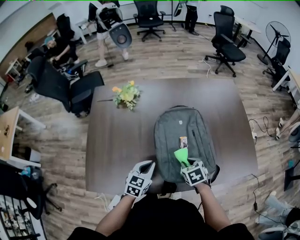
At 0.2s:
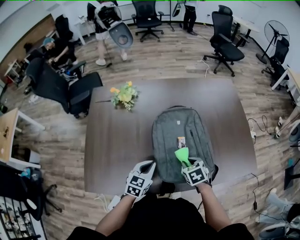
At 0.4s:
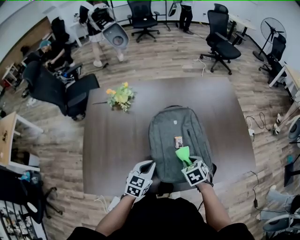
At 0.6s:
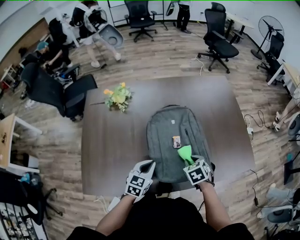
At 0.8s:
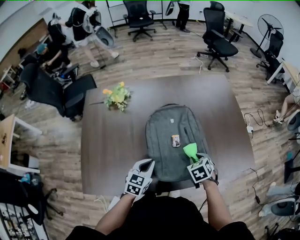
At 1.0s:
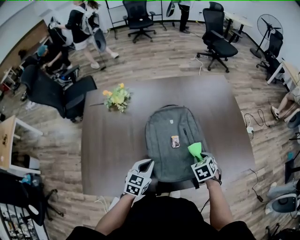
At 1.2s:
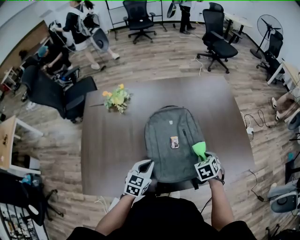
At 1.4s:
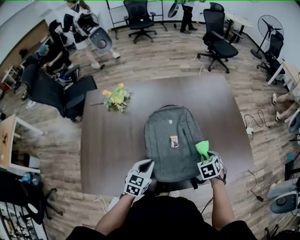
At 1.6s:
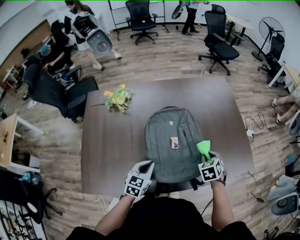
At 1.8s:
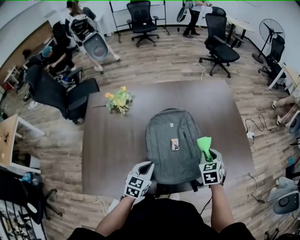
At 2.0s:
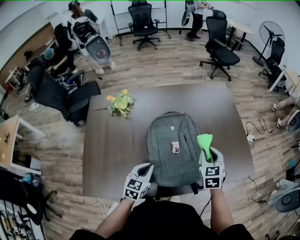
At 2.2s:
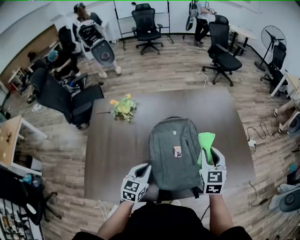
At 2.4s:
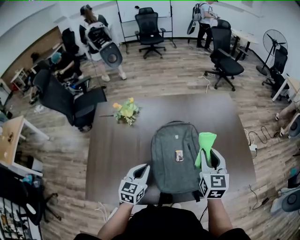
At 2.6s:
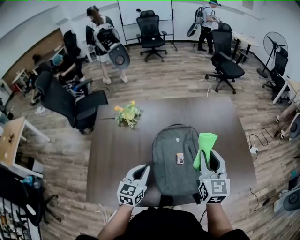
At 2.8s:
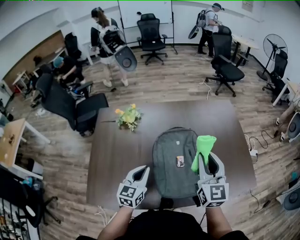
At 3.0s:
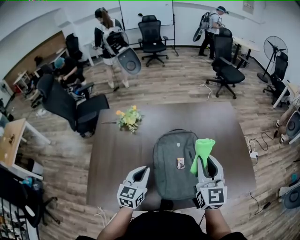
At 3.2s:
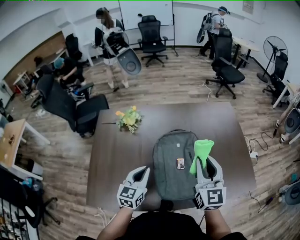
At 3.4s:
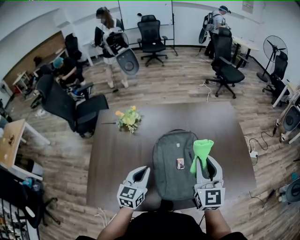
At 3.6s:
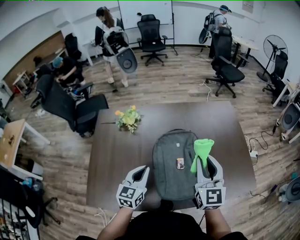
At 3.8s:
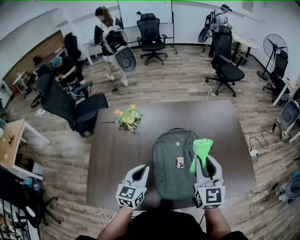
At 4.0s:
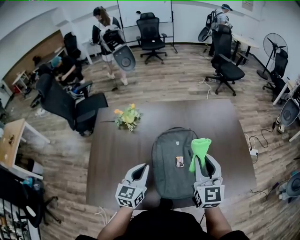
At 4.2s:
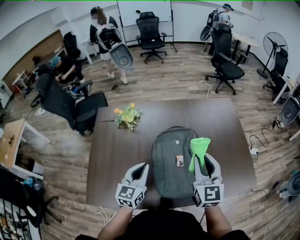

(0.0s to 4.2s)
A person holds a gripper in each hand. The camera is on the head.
0.0s - 1.4s: The right gripper is displaced to the right by about 15 cm.
1.4s - 2.8s: The left gripper heads upward and to the left, covering about 10 cm, while the right gripper travels upward and to the left by about 30 cm, and points its fingers about 60 degrees further upward.
2.8s - 4.2s: The grippers make only small movements.

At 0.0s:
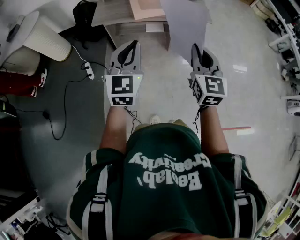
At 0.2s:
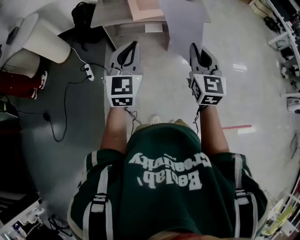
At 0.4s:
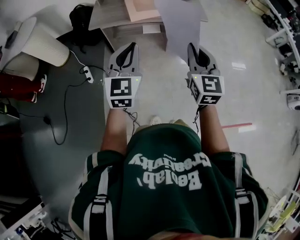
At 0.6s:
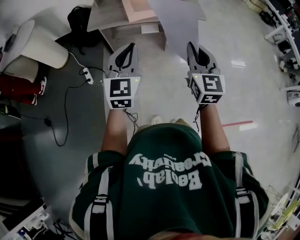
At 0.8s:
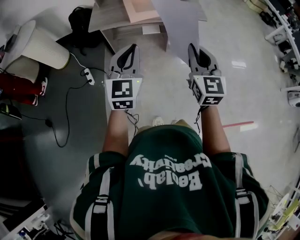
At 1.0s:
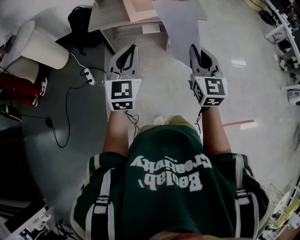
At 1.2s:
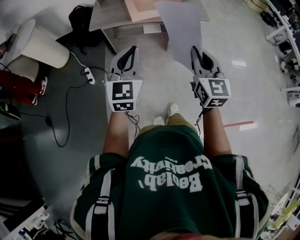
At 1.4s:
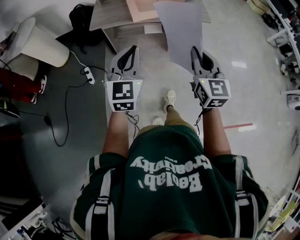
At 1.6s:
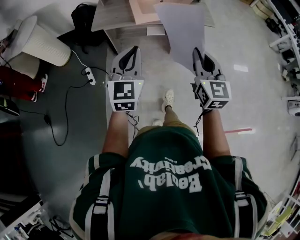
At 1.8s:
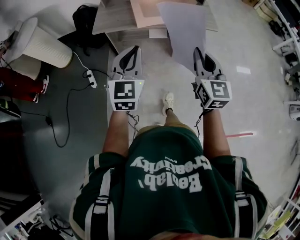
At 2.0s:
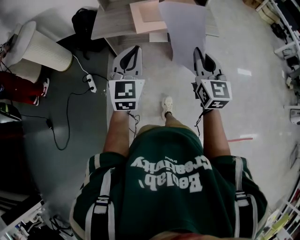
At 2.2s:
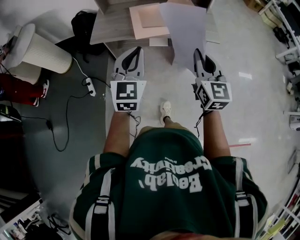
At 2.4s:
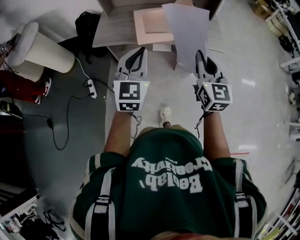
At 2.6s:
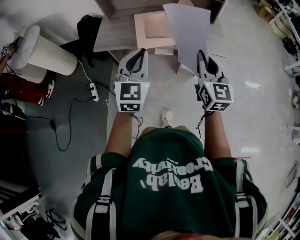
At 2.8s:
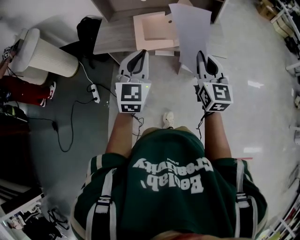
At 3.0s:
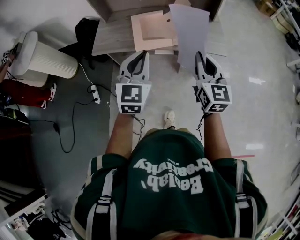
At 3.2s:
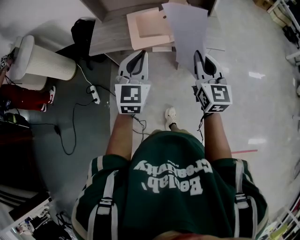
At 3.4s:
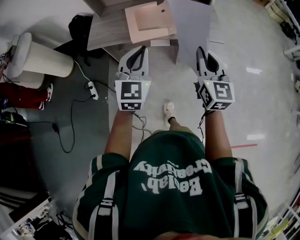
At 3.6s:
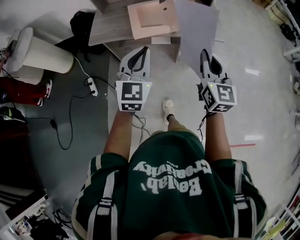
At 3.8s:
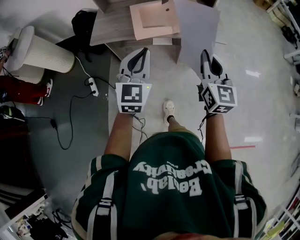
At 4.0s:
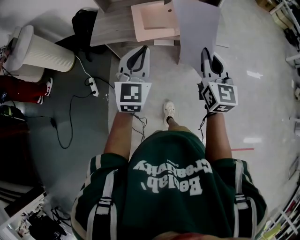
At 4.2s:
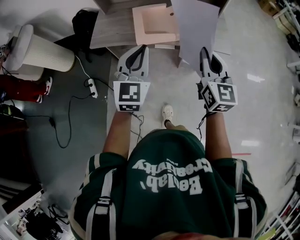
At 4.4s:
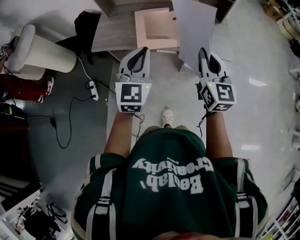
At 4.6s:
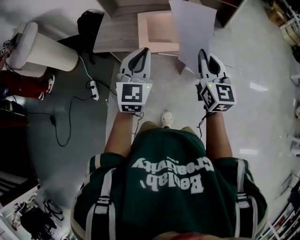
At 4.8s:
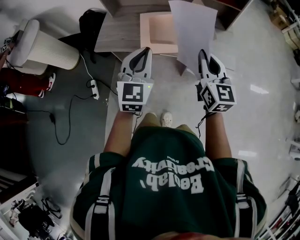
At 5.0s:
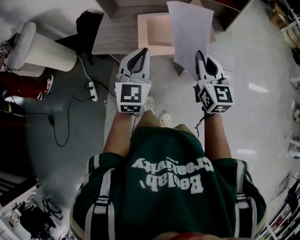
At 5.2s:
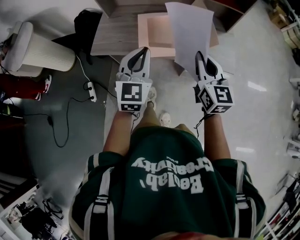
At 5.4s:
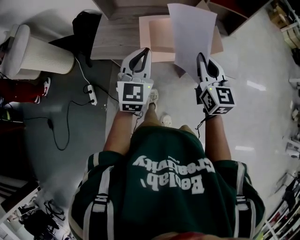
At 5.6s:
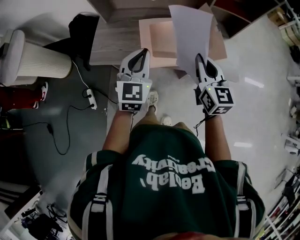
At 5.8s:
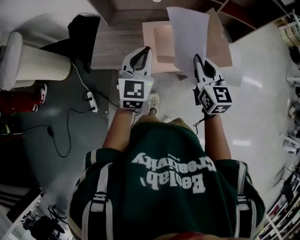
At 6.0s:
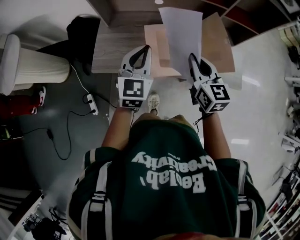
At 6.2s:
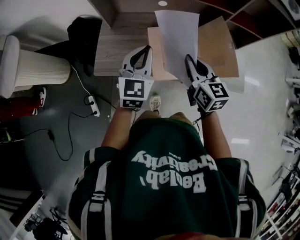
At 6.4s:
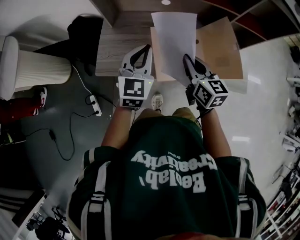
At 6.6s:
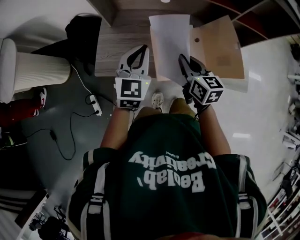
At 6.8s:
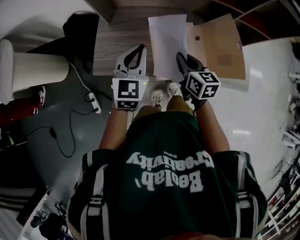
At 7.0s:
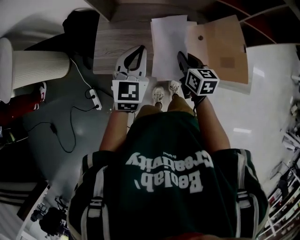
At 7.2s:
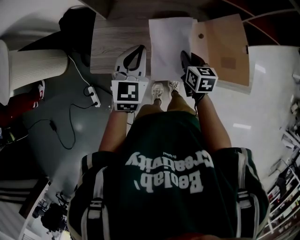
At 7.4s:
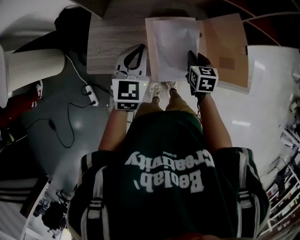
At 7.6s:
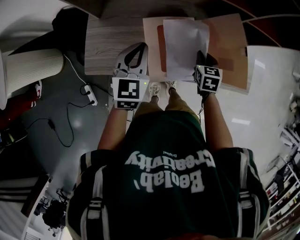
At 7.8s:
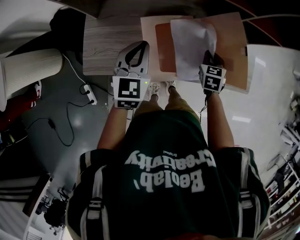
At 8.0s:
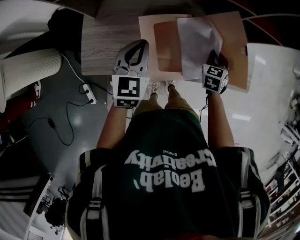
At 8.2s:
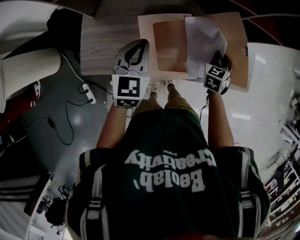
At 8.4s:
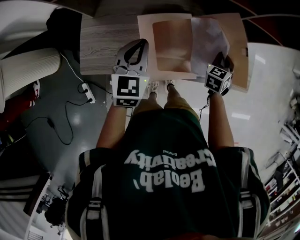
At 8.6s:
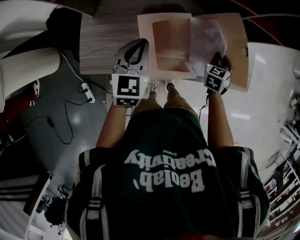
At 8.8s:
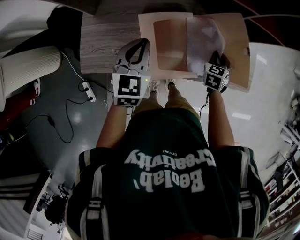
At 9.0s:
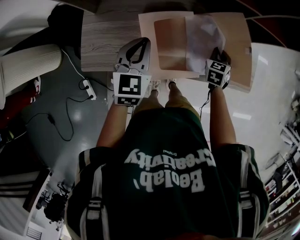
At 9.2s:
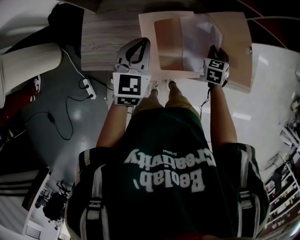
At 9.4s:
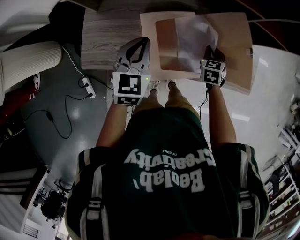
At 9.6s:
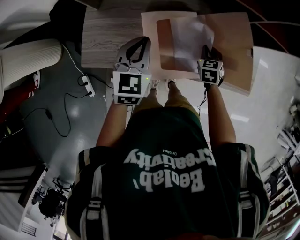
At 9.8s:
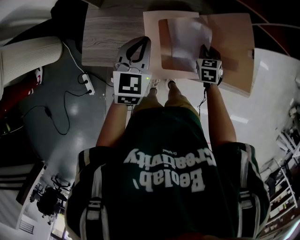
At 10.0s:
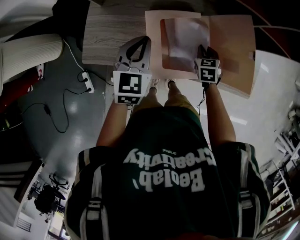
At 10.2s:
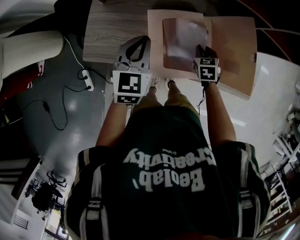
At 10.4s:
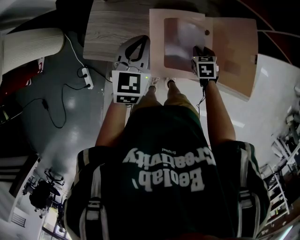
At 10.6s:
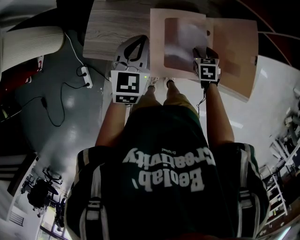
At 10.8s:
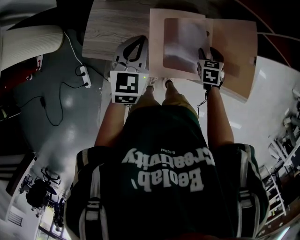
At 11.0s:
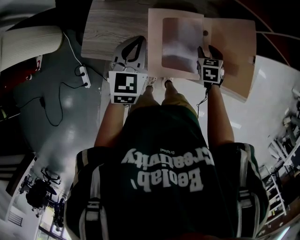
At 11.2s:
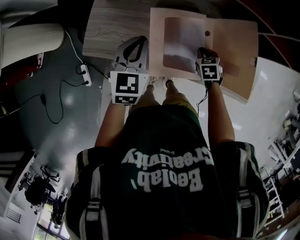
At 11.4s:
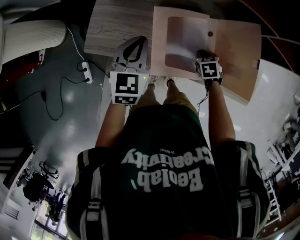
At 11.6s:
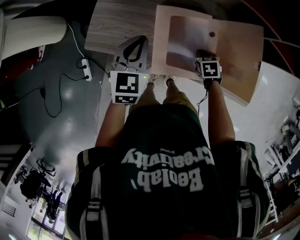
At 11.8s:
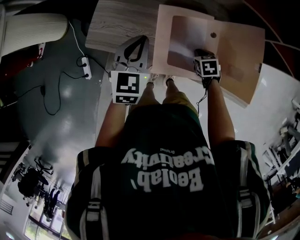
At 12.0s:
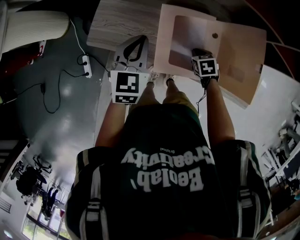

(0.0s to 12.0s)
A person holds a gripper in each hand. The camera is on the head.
0.0s - 1.6s: The left gripper changes place by approximately 5 cm.
1.6s - 3.0s: Both grippers travel together forward, roughly 30 cm.
3.0s - 4.4s: The right gripper is displaced forward by approximately 5 cm; the left gripper shifts by about 5 cm.
4.4s - 6.0s: The left gripper is displaced forward by about 25 cm; the right gripper shifts about 30 cm forward and to the left.
6.0s - 7.6s: The right gripper shifts roughly 25 cm downward and forward, and tips its fingers downward by approximately 30 degrees, while the left gripper heads forward and downward, covering some 15 cm.
7.6s - 9.0s: The right gripper goes some 10 cm to the right.
9.0s - 10.4s: The right gripper moves to the left, approximately 10 cm, and changes its angle by about 30 degrees.
10.4s - 12.0s: The right gripper opens, then closes once more.

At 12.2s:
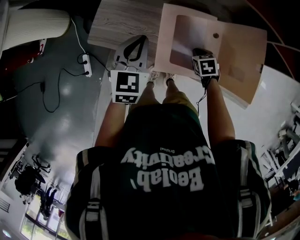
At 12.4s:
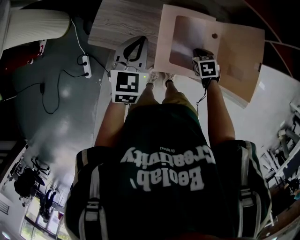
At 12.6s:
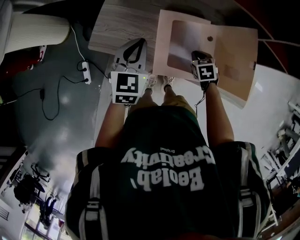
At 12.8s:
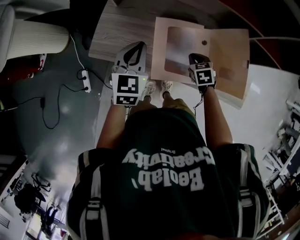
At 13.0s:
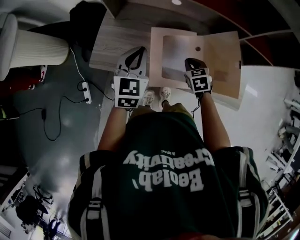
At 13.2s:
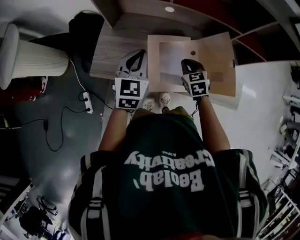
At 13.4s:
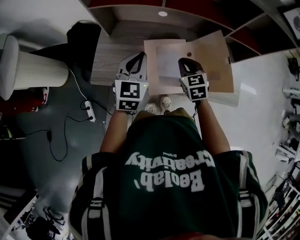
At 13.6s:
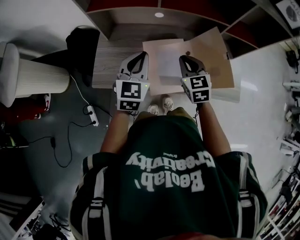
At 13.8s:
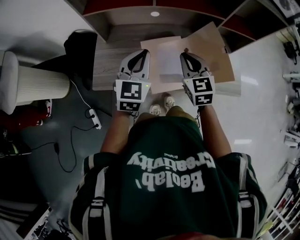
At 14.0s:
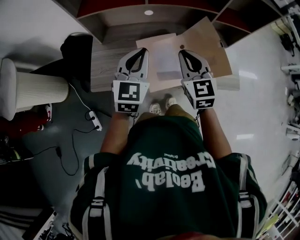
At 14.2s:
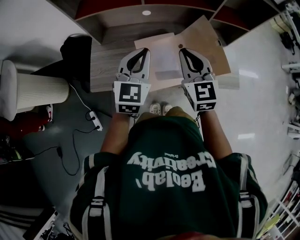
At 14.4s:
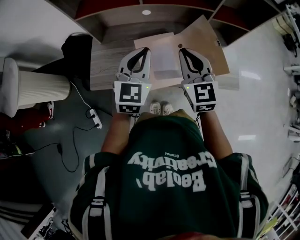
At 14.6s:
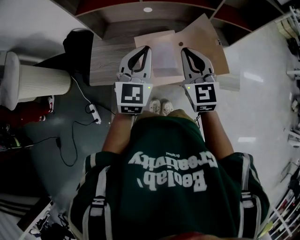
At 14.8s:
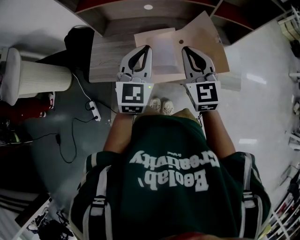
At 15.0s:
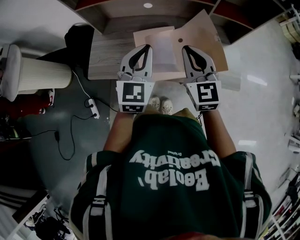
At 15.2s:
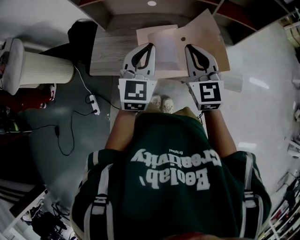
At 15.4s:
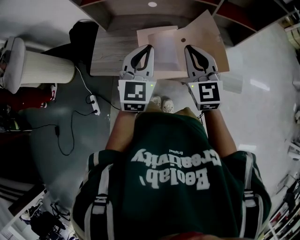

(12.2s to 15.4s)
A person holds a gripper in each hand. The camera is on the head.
12.2s - 13.8s: The left gripper goes roughly 15 cm upward, and swivels some 20 degrees. Meanwhile the right gripper is displaced upward by about 30 cm, and angles its fingers upward, by approximately 40 degrees.
13.8s - 15.4s: The right gripper shifts roughly 10 cm to the right, backward and upward, while the left gripper moves to the right and backward, roughly 10 cm.

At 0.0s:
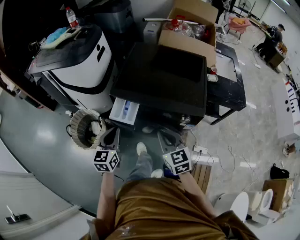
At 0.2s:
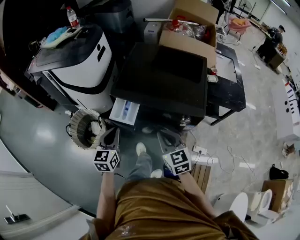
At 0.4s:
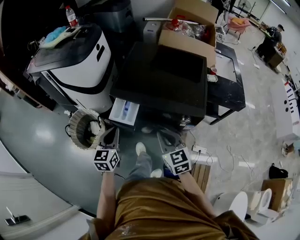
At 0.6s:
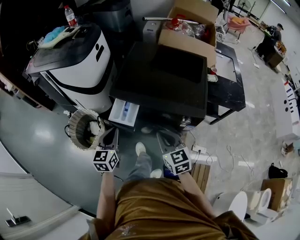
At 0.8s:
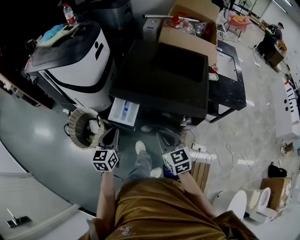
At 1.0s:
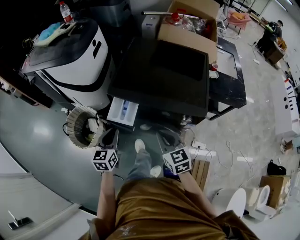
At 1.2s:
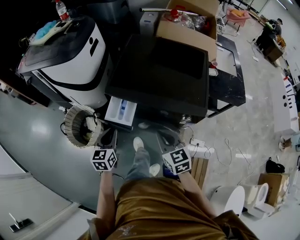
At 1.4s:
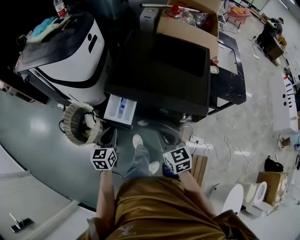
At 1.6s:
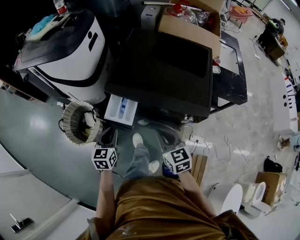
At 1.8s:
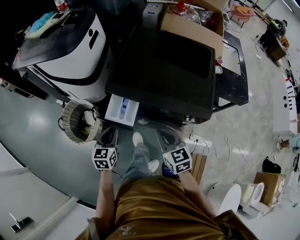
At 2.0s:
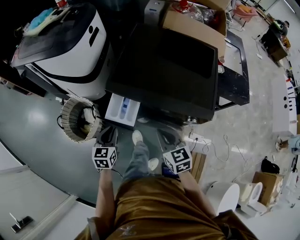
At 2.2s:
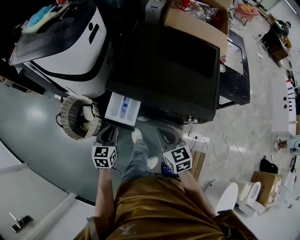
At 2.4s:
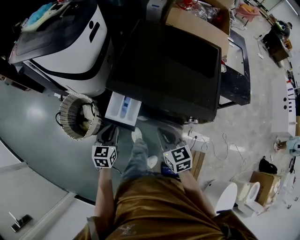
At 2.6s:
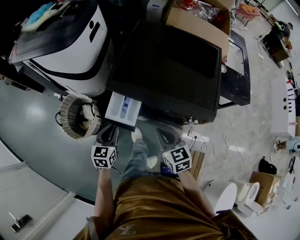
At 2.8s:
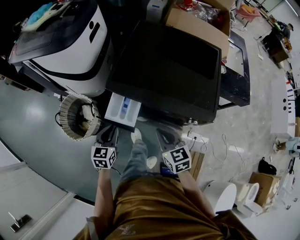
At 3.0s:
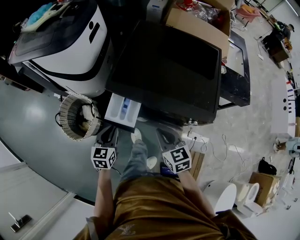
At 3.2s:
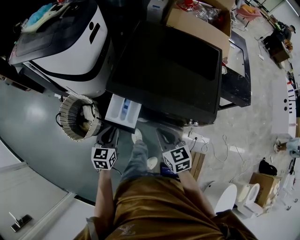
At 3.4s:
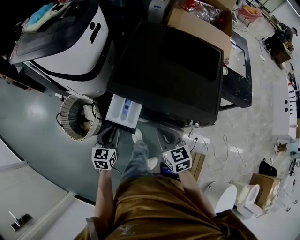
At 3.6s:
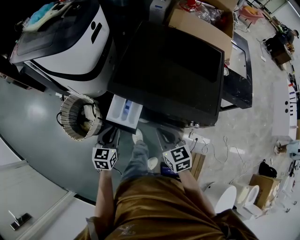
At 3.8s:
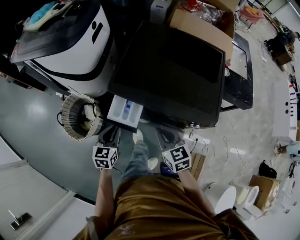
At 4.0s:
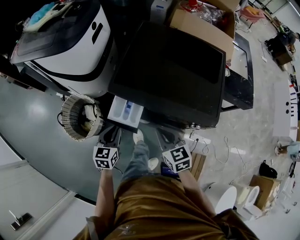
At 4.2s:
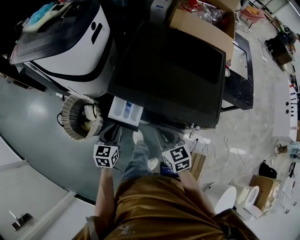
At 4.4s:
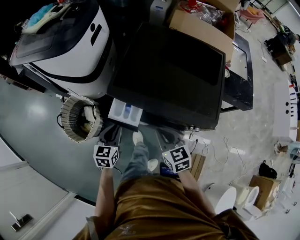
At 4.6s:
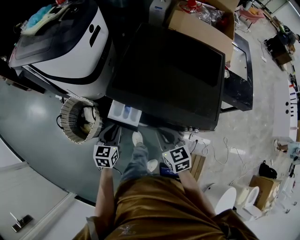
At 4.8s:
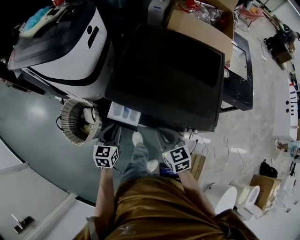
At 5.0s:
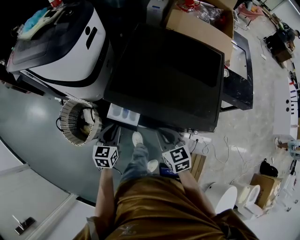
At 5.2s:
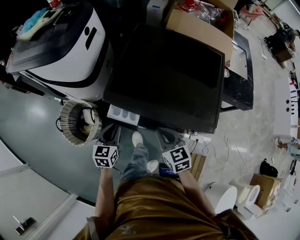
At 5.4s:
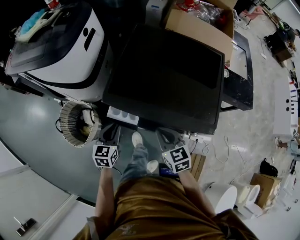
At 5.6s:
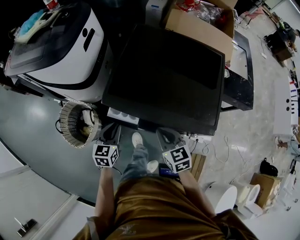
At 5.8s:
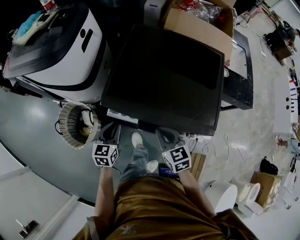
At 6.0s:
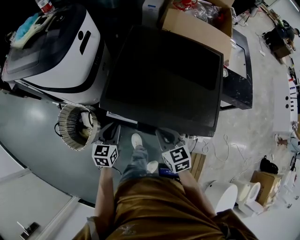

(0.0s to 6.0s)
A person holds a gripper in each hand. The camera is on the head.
0.0s - 1.6s: The right gripper moves downward, about 5 cm. Meanwhile the left gripper goes some 10 cm downward.
1.6s - 3.0s: The grippers move only a little.
3.0s - 4.4s: There are only small adjustments of the grippers.
4.4s - 6.0s: Both grippers move forward, some 5 cm.
